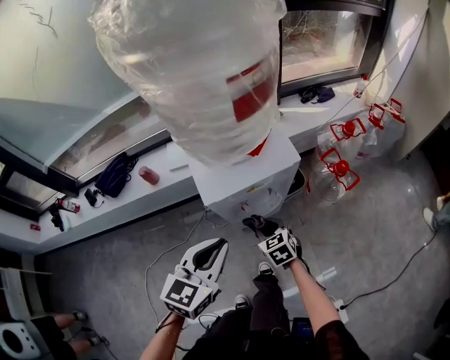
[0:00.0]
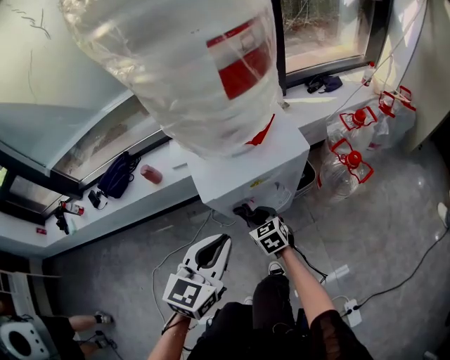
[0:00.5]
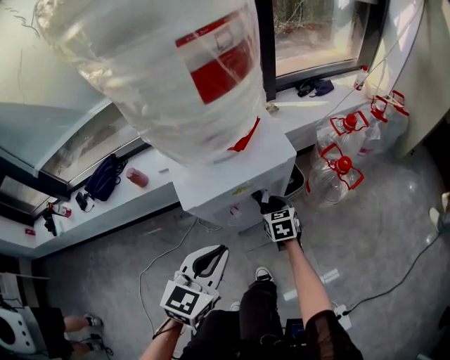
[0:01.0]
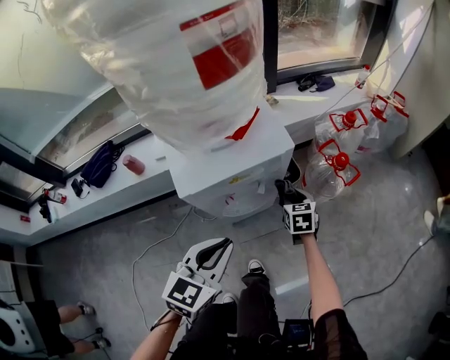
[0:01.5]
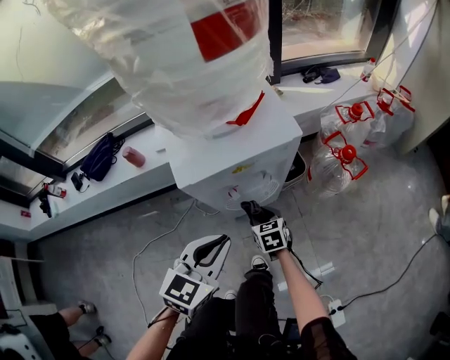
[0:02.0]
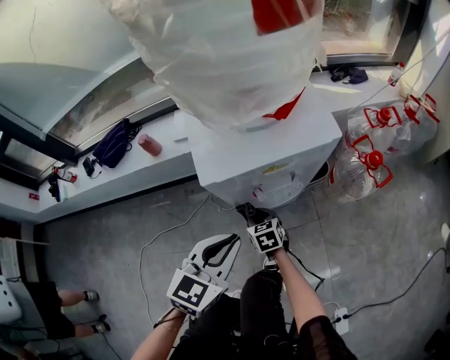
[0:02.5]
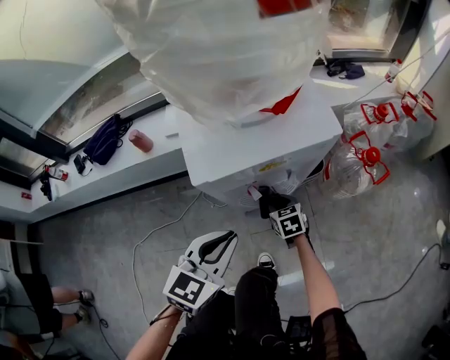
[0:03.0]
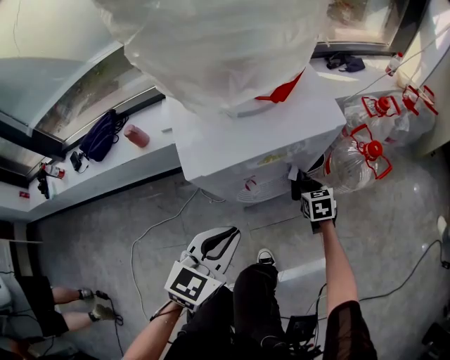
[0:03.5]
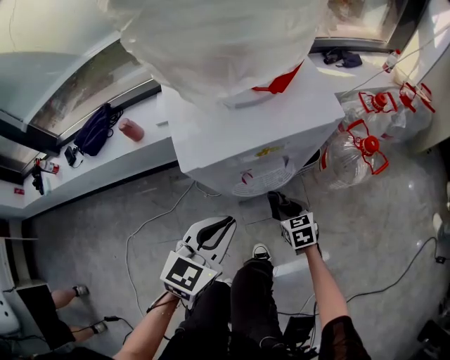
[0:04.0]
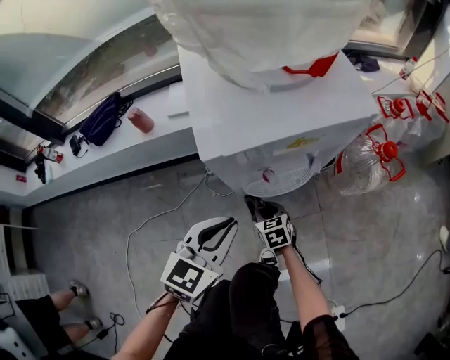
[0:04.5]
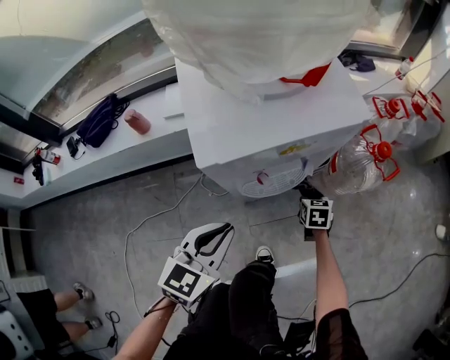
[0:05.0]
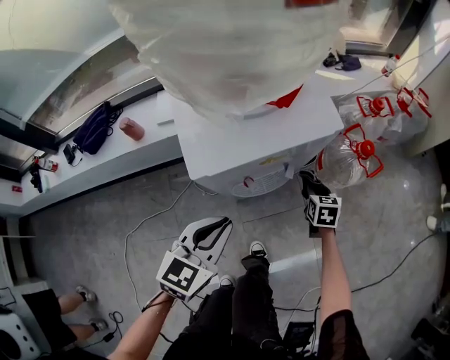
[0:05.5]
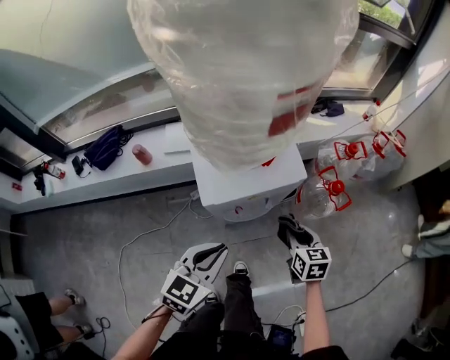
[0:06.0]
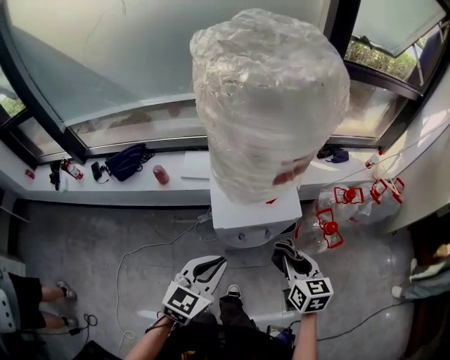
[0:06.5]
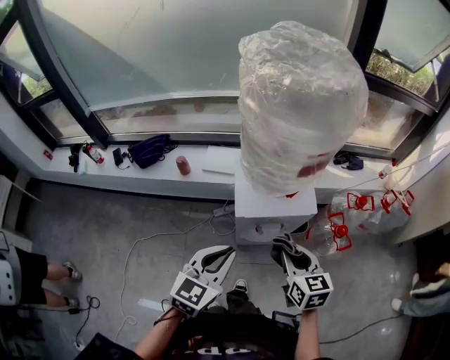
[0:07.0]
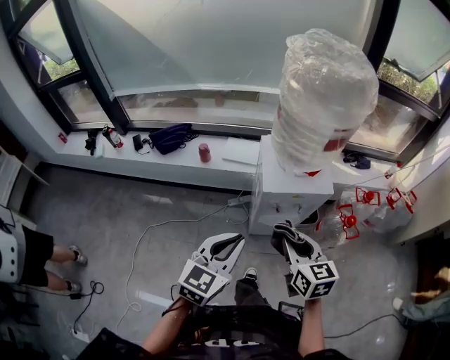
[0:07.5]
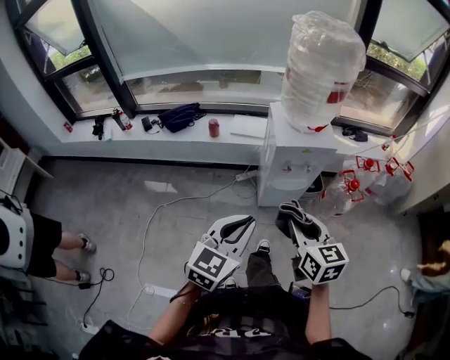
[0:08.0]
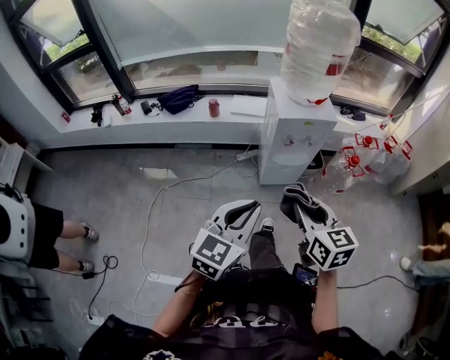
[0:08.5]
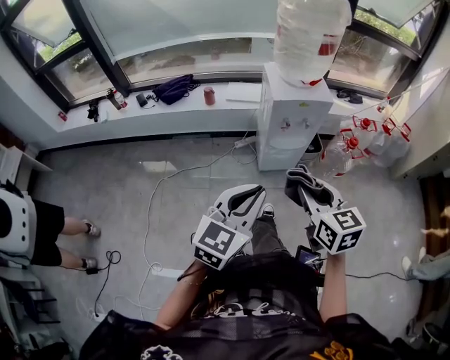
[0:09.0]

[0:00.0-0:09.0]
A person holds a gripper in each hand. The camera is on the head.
0:00.0 to 0:02.0: The left gripper is displaced downward by some 10 cm. Meanwhile the right gripper moves left and right over approximately 20 cm, changing direction 2 times.
0:02.0 to 0:04.5: The left gripper is displaced downward and to the left by approximately 15 cm, while the right gripper swings left and right, about 20 cm each way, with 2 reversals.
0:04.5 to 0:07.0: The left gripper shifts some 35 cm upward; the right gripper shifts roughly 50 cm upward.
0:07.0 to 0:09.0: Both grippers move backward, some 35 cm.

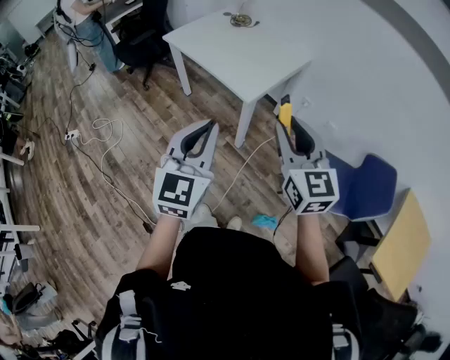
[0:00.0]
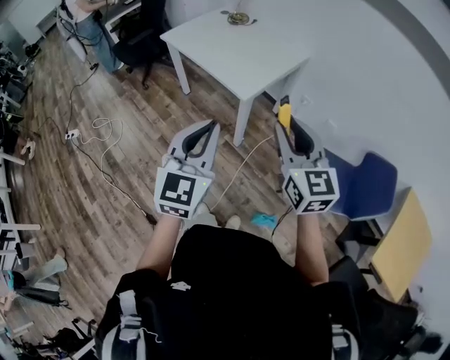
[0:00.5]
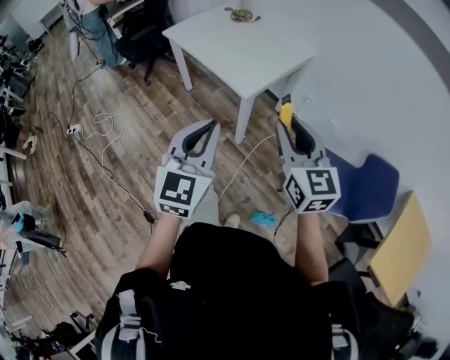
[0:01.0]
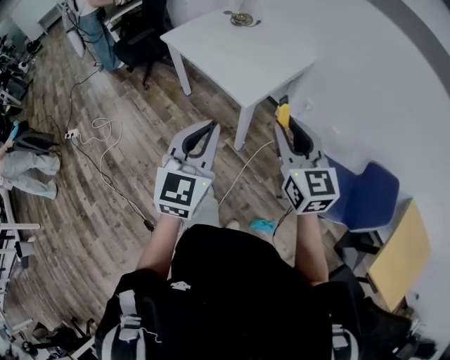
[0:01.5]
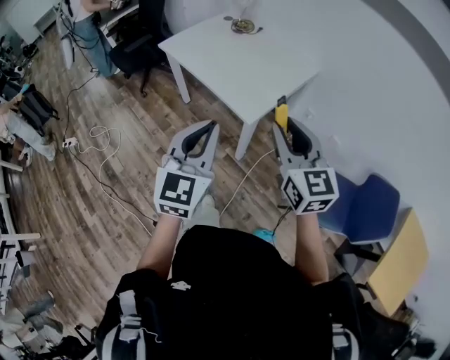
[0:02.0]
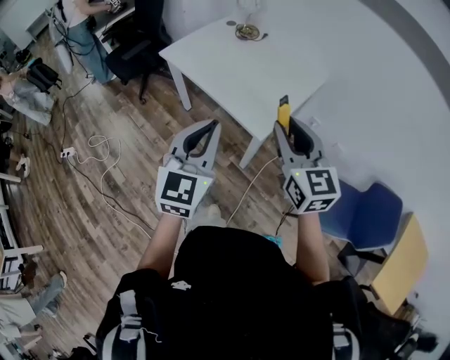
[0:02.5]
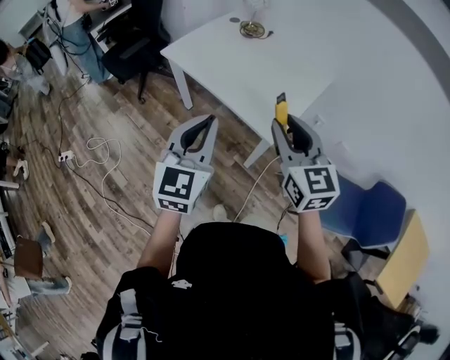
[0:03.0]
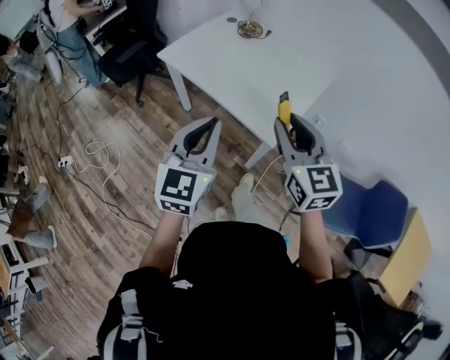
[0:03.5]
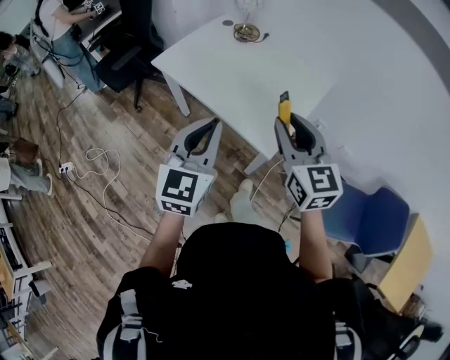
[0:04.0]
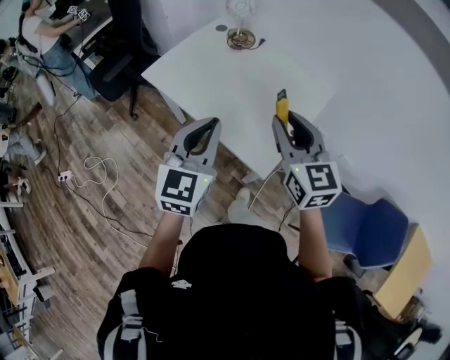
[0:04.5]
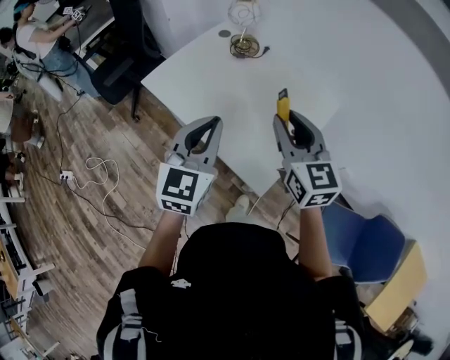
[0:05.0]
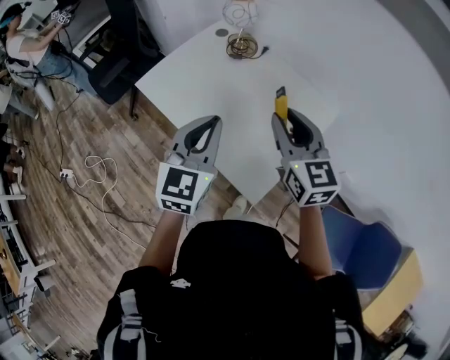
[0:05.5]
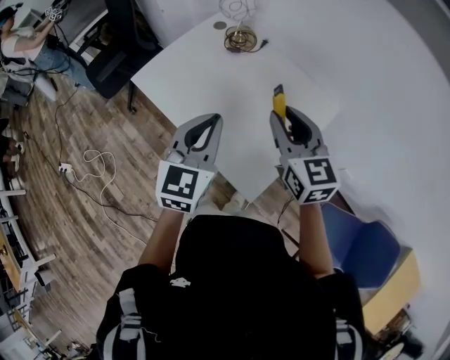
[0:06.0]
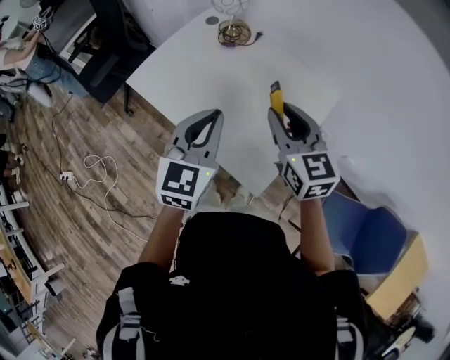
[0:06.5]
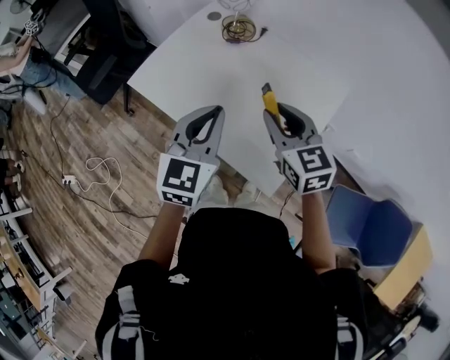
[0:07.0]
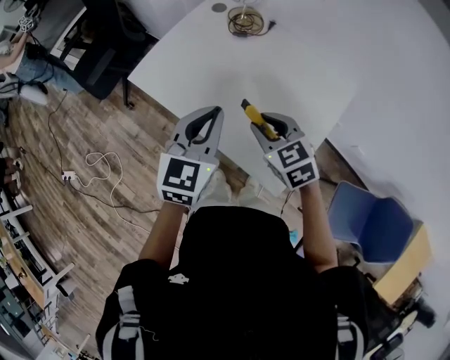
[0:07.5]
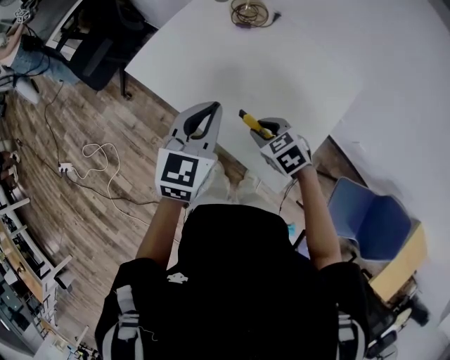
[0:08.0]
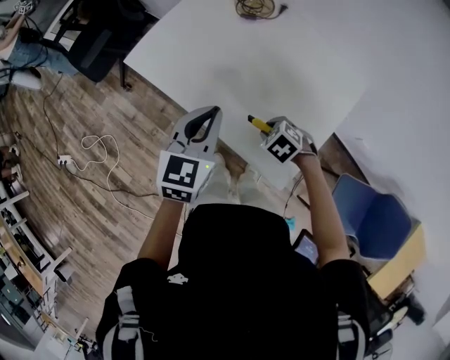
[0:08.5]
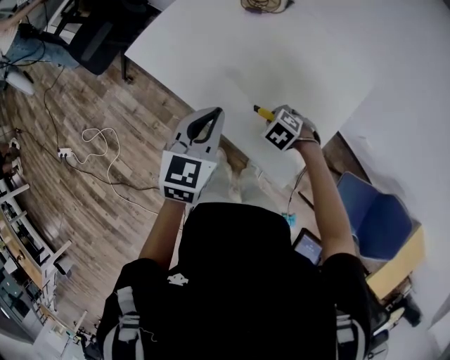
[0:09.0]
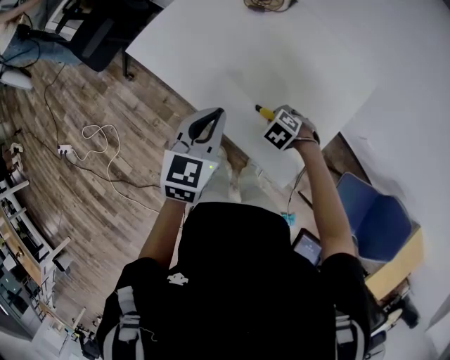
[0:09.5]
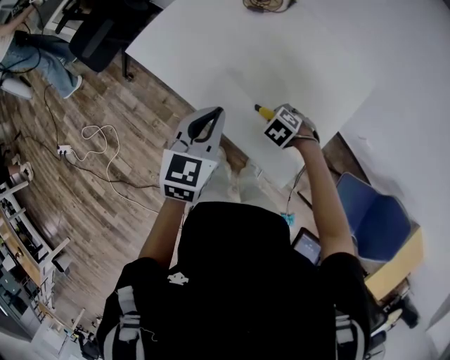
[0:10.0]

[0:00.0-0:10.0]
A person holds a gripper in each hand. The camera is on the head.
0:00.0 to 0:02.0: Both grippers travel together forward, approximately 15 cm.
0:02.0 to 0:04.0: The grippers both shift forward and to the left by some 20 cm.
0:04.0 to 0:06.0: Both grippers move forward, about 20 cm.
0:06.0 to 0:08.0: The left gripper heads to the left, forward and downward, covering approximately 15 cm; the right gripper is displaced downward and to the left by some 25 cm, and angles its fingers downward, by about 40 degrees.
0:08.0 to 0:10.0: The left gripper shifts approximately 5 cm downward. Meanwhile the right gripper travels downward by roughly 15 cm, and swivels about 30 degrees.

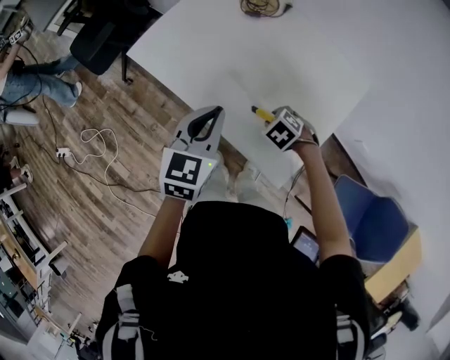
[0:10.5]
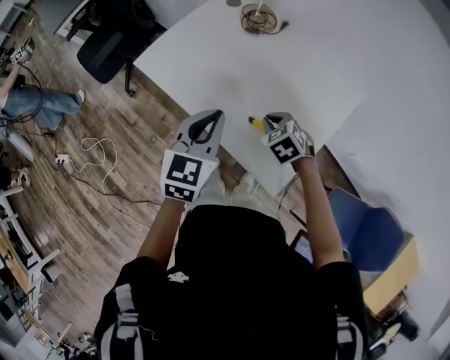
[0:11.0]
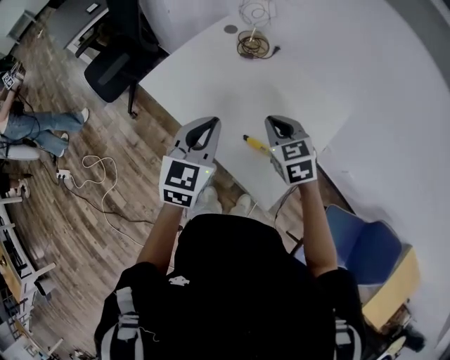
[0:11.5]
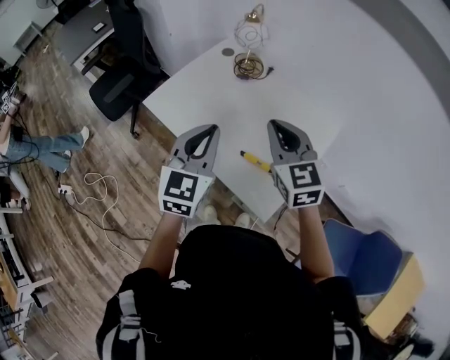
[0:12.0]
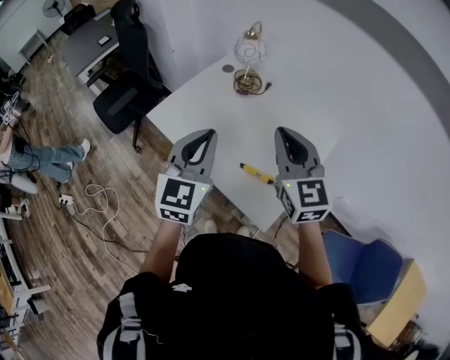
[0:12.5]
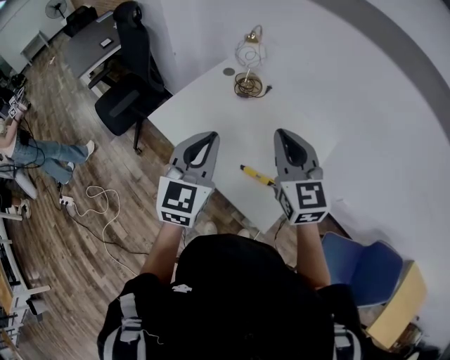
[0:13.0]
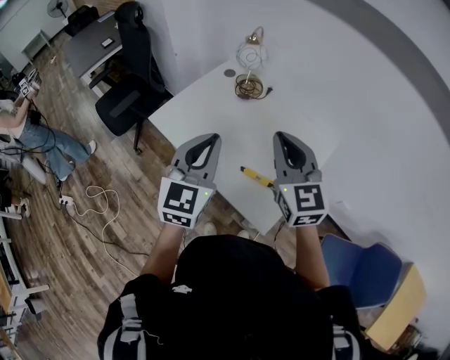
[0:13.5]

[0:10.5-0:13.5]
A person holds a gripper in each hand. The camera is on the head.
0:10.5 to 0:12.0: The right gripper heads upward, covering about 35 cm, angles its fingers upward, by roughly 60 degrees, and closes its fingers. The left gripper heads upward, covering some 15 cm.
0:12.0 to 0:13.5: Both grippers move upward, some 5 cm.

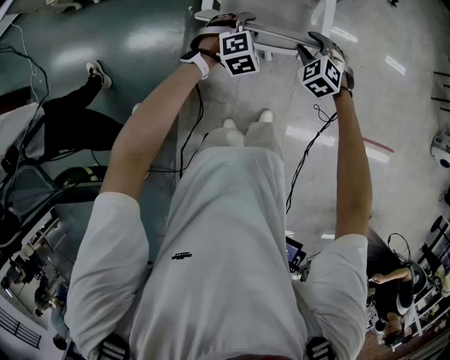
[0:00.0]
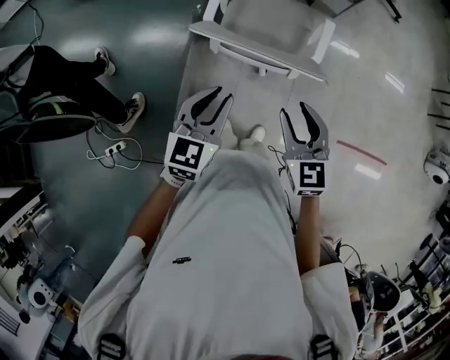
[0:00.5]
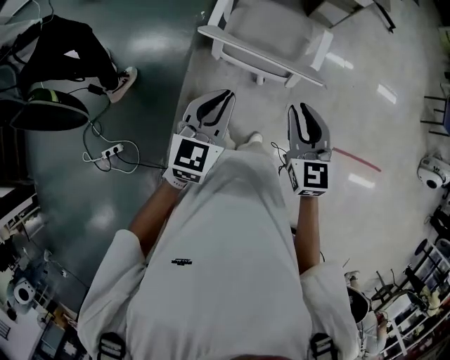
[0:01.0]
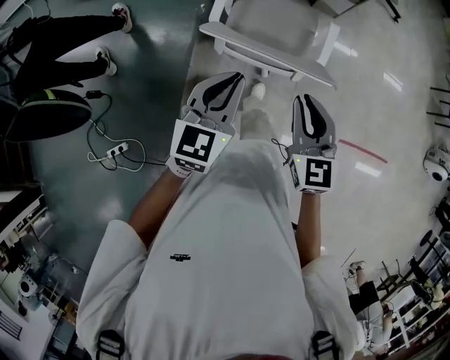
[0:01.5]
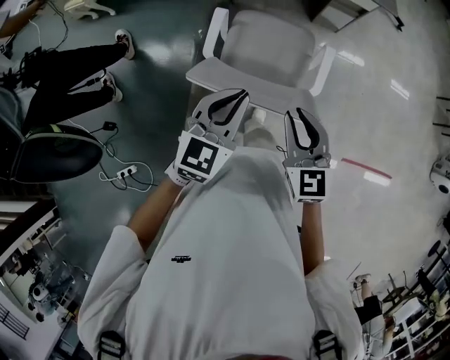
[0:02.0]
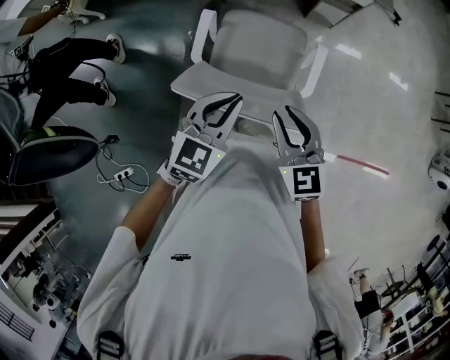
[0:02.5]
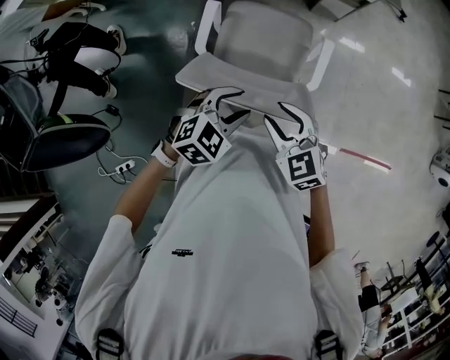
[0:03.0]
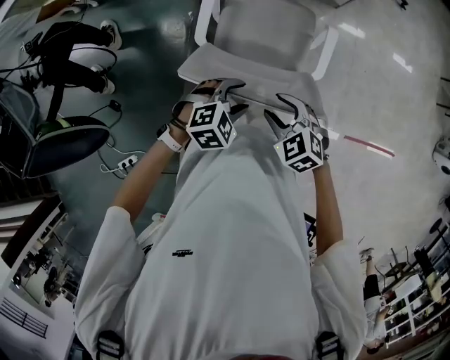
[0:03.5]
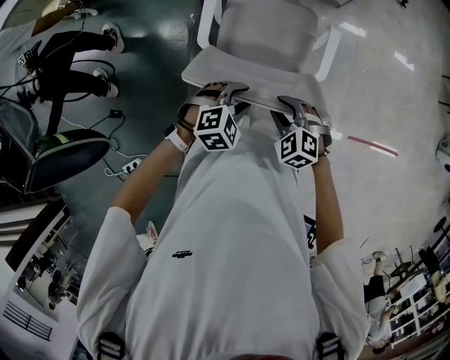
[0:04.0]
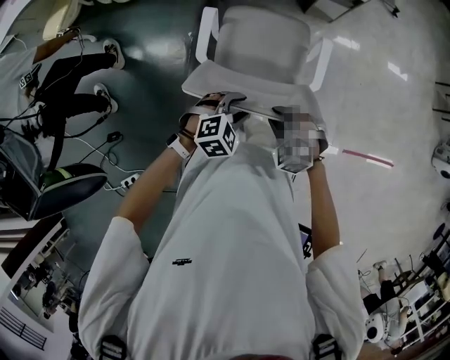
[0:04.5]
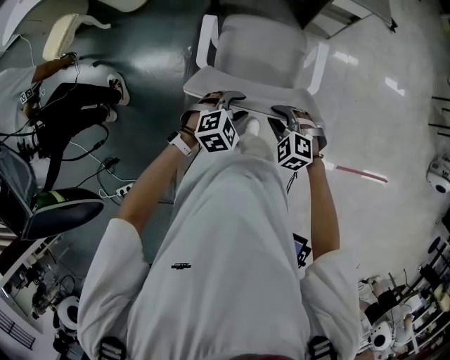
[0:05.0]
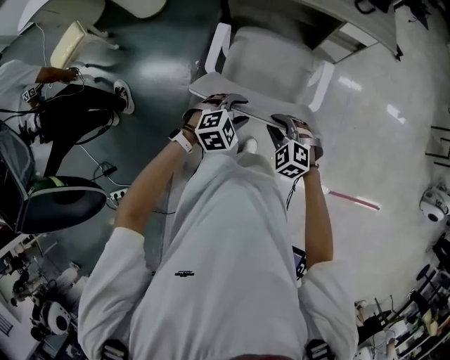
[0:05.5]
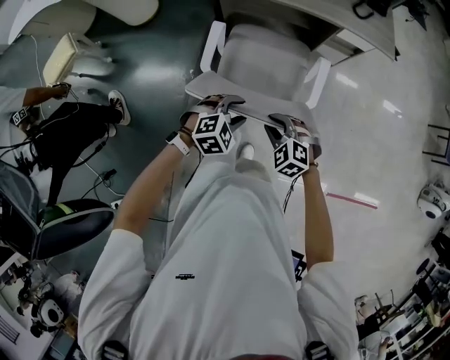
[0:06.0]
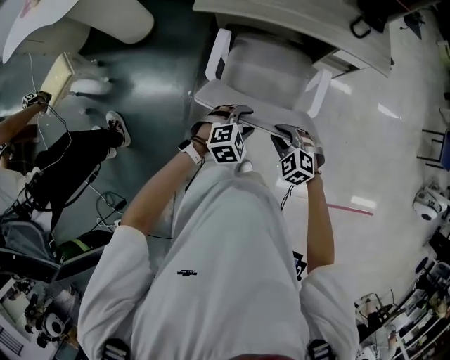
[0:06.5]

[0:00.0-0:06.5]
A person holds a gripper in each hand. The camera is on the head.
0:00.0 to 0:02.0: Both grippers travel together upward and backward, roughly 20 cm. The left gripper rotates around the line of its fingers by approximately 40 degrees, counterclockwise from behind, and closes up, while the right gripper rotates some 50 degrees, and closes up.
0:02.0 to 0:04.5: The grippers both shift downward by some 20 cm. The right gripper points its fingers approximately 30 degrees further downward, and opens, then closes once more, while the left gripper tilts its fingers approximately 30 degrees downward, and opens.
0:04.5 to 0:06.5: The grippers both shift forward by some 25 cm.
